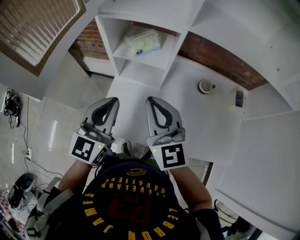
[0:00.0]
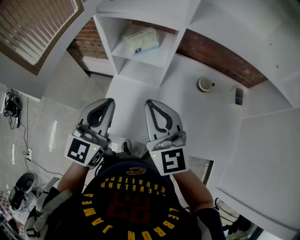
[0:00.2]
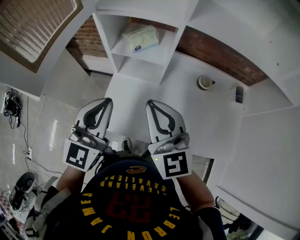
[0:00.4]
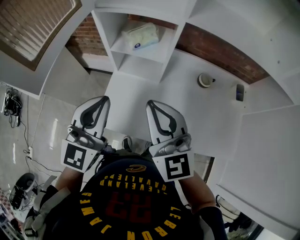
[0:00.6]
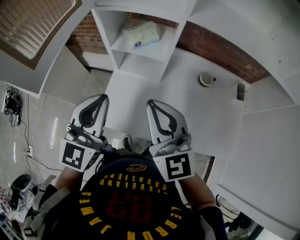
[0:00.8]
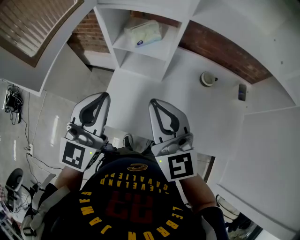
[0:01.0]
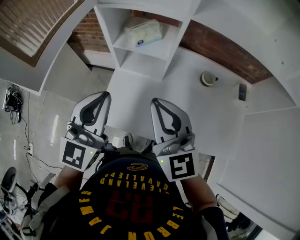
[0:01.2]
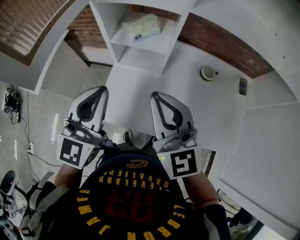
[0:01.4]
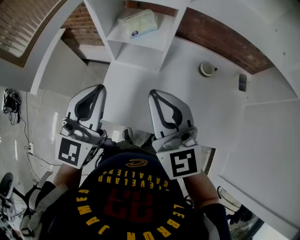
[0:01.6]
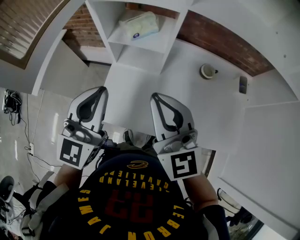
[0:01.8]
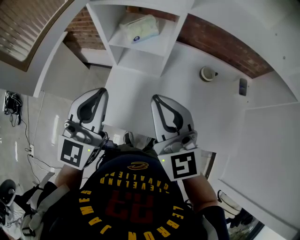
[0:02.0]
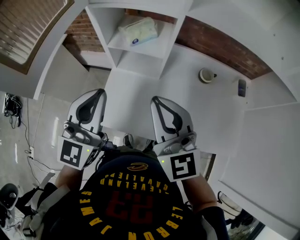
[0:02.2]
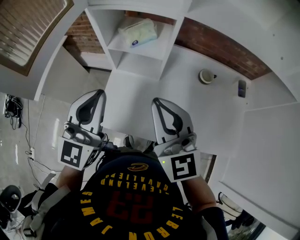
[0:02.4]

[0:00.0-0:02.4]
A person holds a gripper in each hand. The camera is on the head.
0:00.0 to 0:02.4: The grippers stay close to where they were, moving slightly.

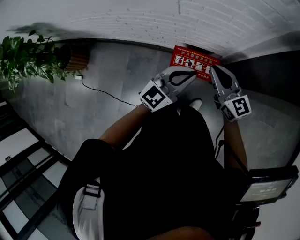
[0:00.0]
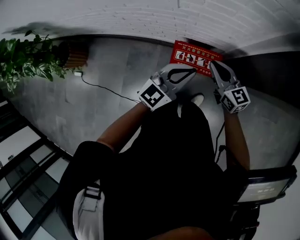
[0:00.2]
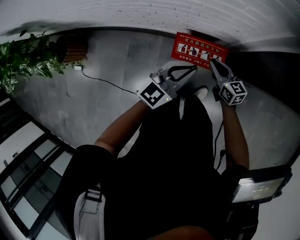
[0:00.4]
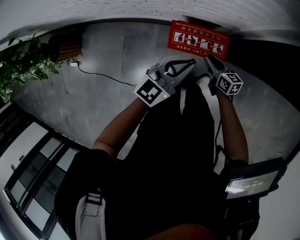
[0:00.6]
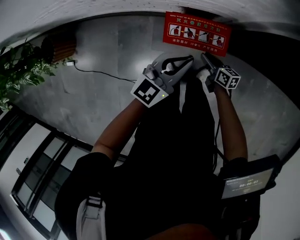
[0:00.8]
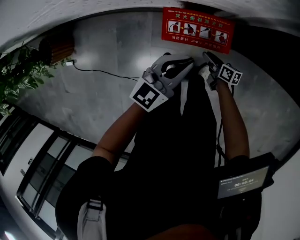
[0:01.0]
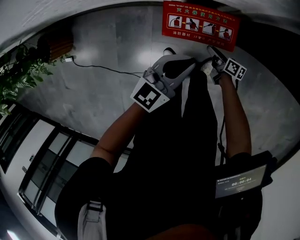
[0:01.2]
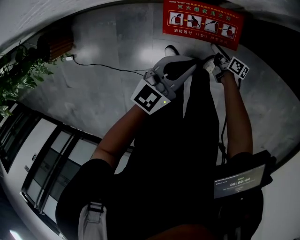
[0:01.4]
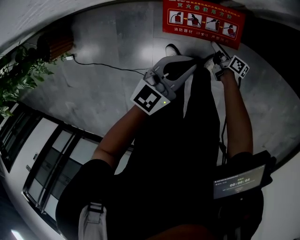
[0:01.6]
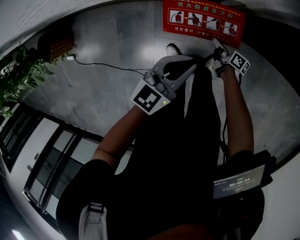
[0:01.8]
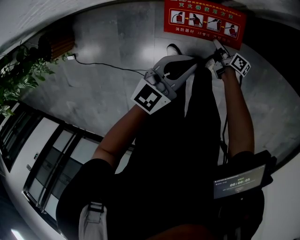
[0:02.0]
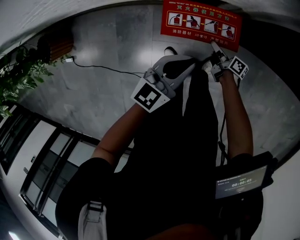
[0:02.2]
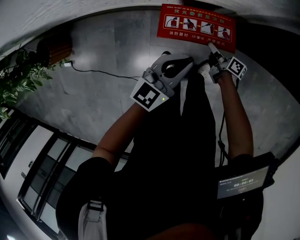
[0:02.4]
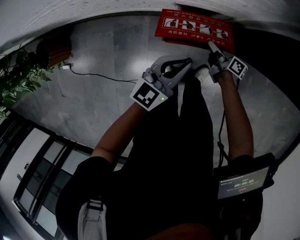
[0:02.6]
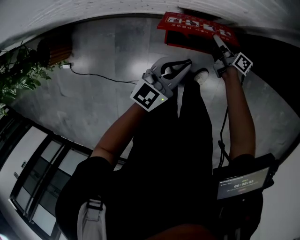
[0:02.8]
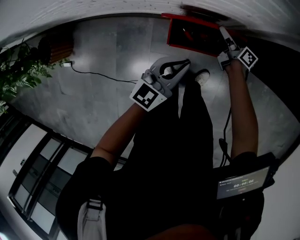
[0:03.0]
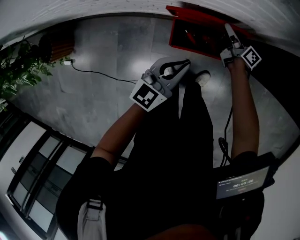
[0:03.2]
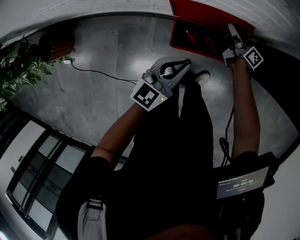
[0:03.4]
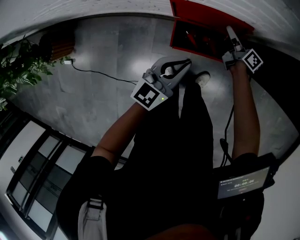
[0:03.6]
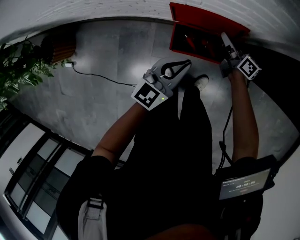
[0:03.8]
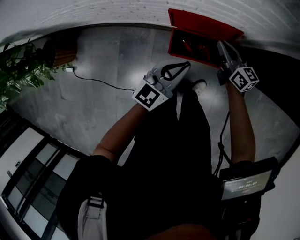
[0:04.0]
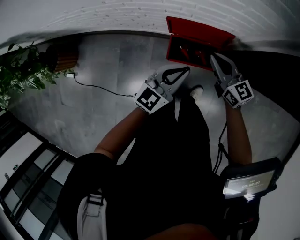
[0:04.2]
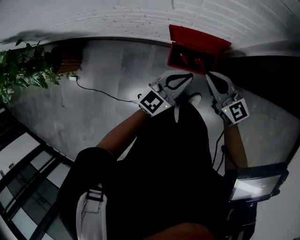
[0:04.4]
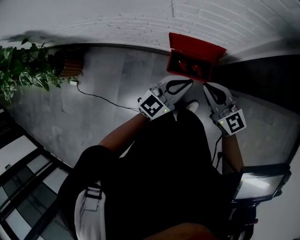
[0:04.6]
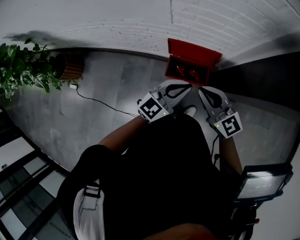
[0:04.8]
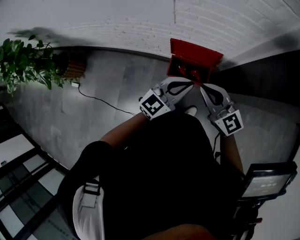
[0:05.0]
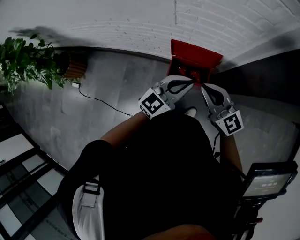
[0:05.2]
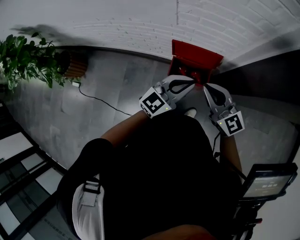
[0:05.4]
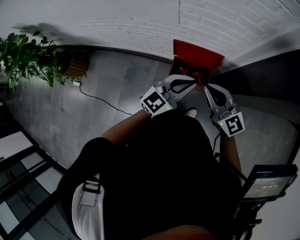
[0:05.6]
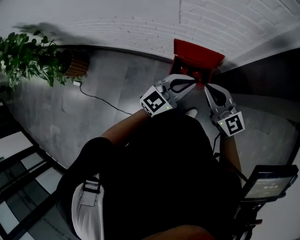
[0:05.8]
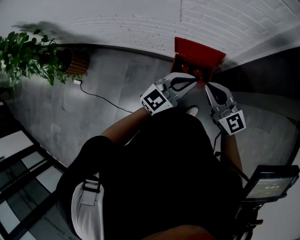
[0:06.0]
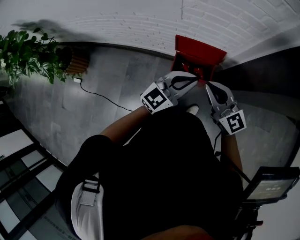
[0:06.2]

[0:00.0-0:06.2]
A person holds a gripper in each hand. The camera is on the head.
0:00.0 to 0:01.6: The left gripper shifts about 30 cm downward, while the right gripper is displaced downward by approximately 60 cm, rolls clockwise, seen from behind, by roughly 70 degrees, and opens up.
0:01.6 to 0:03.2: The right gripper travels forward and upward by some 30 cm; the left gripper goes some 5 cm upward.
0:03.2 to 0:04.6: The right gripper is displaced upward and backward by roughly 40 cm, twists about 70 degrees counterclockwise, seen from behind, and closes. Meanwhile the left gripper travels upward by some 20 cm.
0:04.6 to 0:06.2: The two grippers go roughly 5 cm upward.

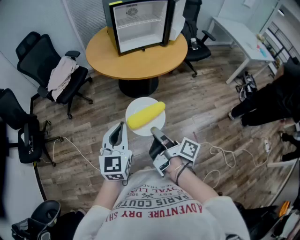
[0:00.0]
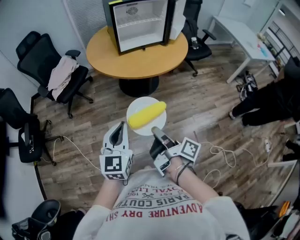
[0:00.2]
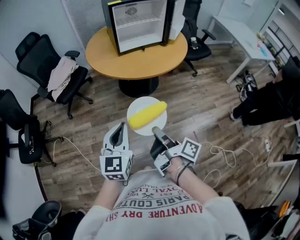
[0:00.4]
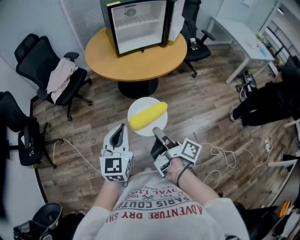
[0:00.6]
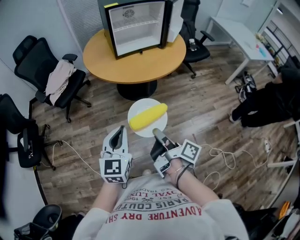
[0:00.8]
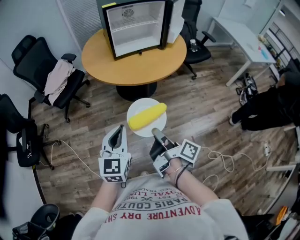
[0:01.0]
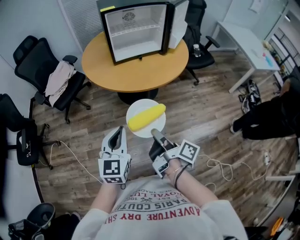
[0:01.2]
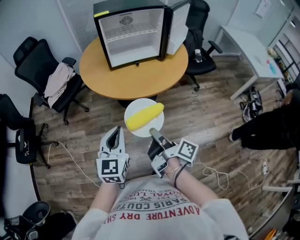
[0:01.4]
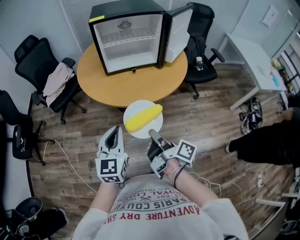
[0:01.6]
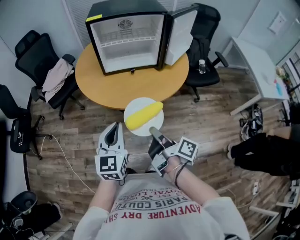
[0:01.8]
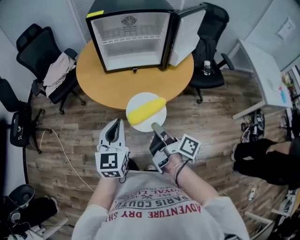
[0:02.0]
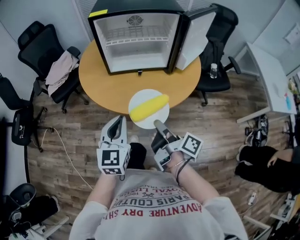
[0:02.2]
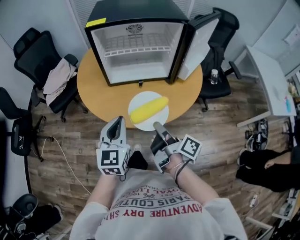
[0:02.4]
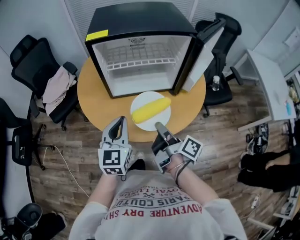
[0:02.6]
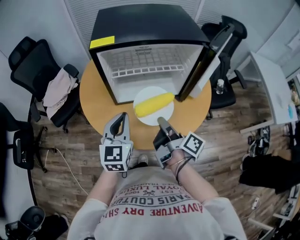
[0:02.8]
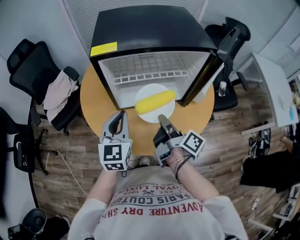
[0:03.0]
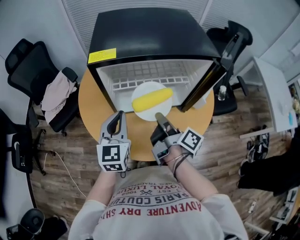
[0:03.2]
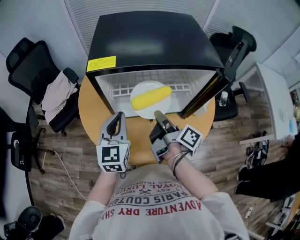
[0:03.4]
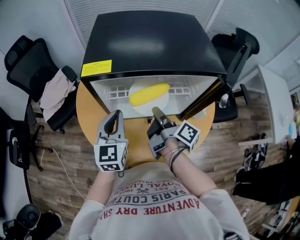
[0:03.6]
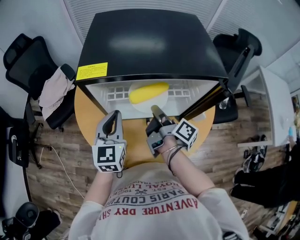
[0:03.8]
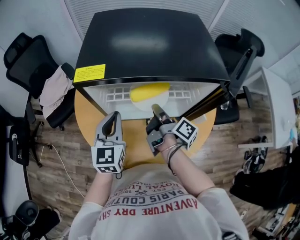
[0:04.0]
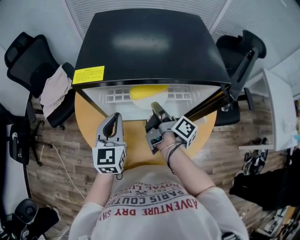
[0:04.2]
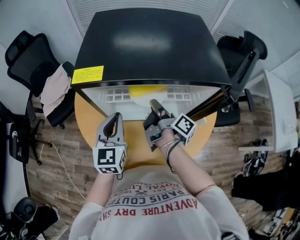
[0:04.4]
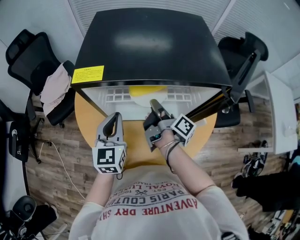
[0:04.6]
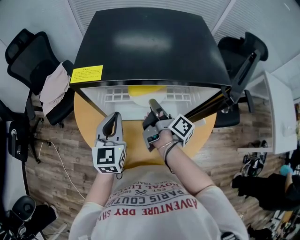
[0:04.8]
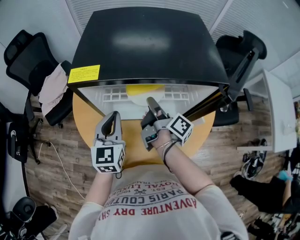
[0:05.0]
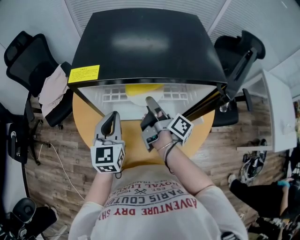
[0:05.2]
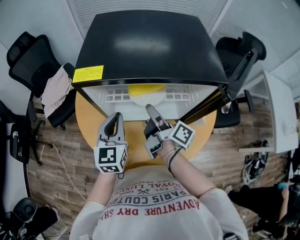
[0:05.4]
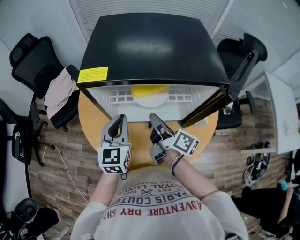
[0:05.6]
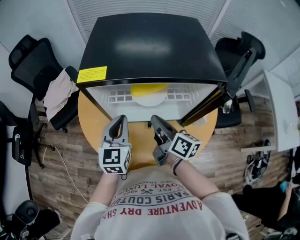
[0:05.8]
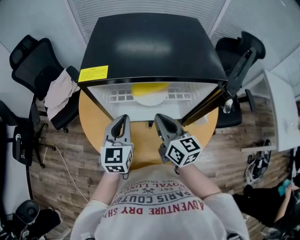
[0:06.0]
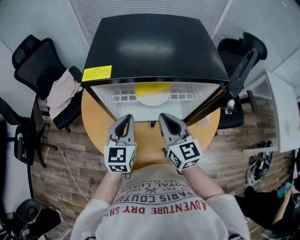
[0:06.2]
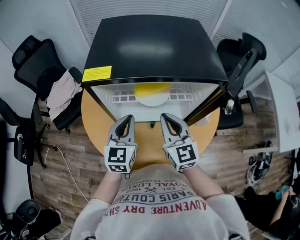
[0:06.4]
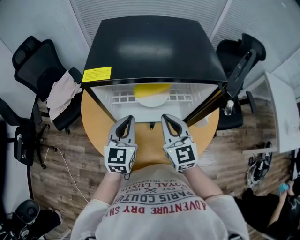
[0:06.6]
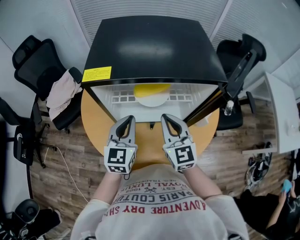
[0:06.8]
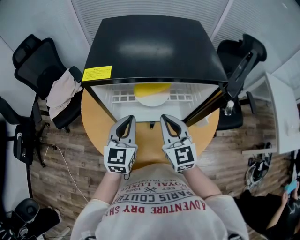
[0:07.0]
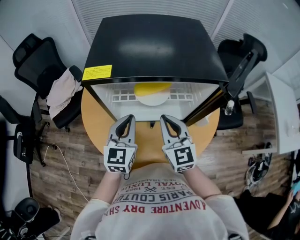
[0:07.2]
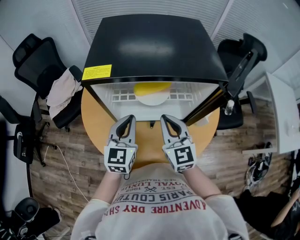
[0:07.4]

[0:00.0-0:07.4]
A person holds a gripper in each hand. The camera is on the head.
0:00.0 to 0:01.4: The left gripper ends up some 15 cm from where it was.
0:01.4 to 0:03.0: The left gripper shifts by about 40 cm.
0:03.0 to 0:04.4: The left gripper ends up approximately 10 cm from where it was.

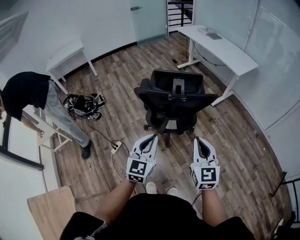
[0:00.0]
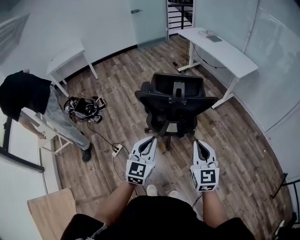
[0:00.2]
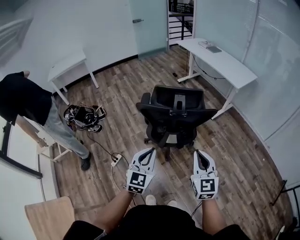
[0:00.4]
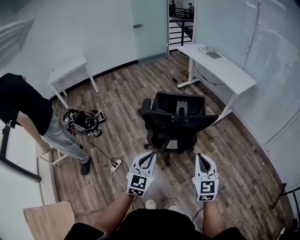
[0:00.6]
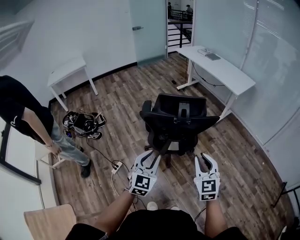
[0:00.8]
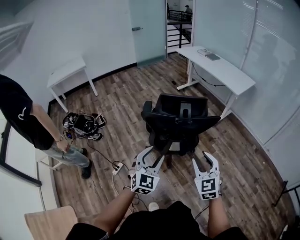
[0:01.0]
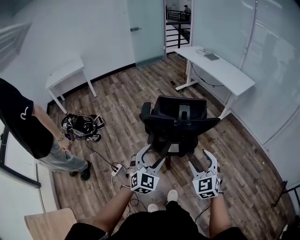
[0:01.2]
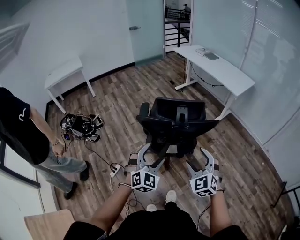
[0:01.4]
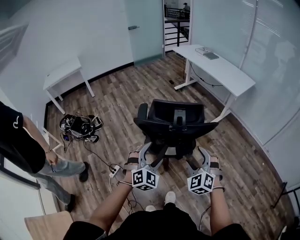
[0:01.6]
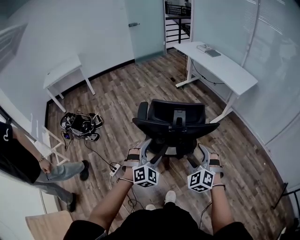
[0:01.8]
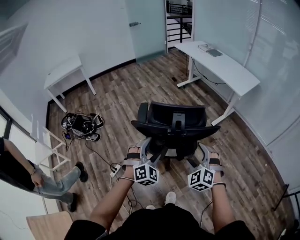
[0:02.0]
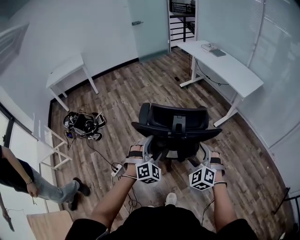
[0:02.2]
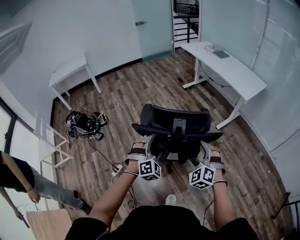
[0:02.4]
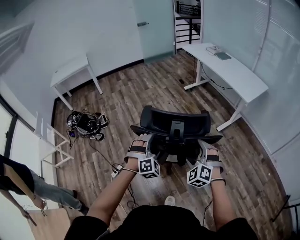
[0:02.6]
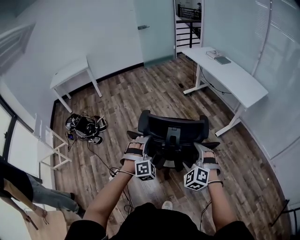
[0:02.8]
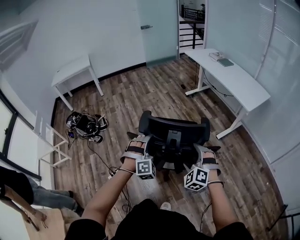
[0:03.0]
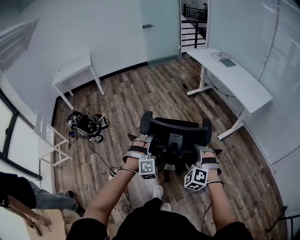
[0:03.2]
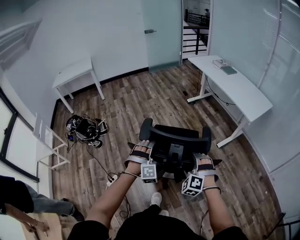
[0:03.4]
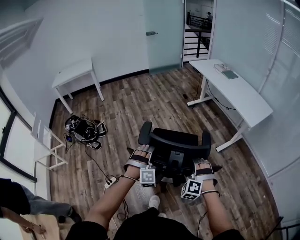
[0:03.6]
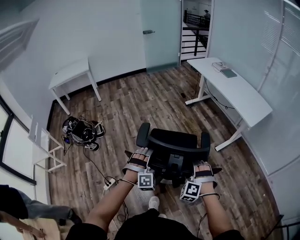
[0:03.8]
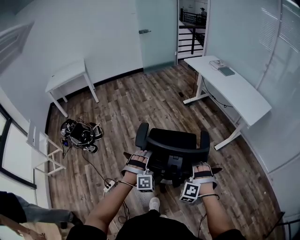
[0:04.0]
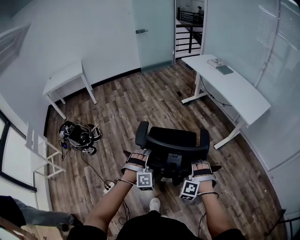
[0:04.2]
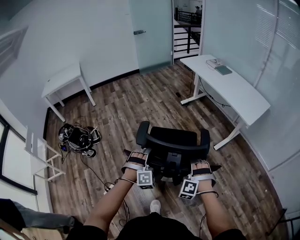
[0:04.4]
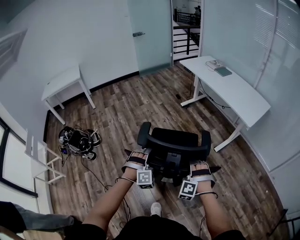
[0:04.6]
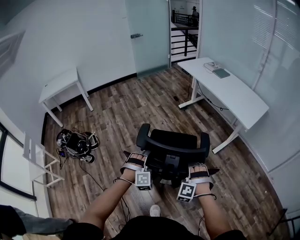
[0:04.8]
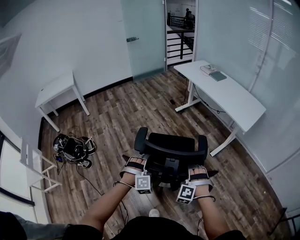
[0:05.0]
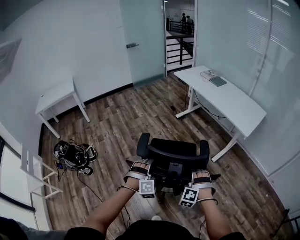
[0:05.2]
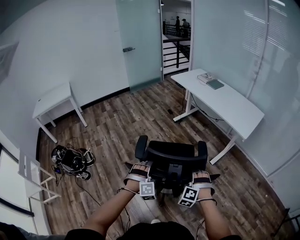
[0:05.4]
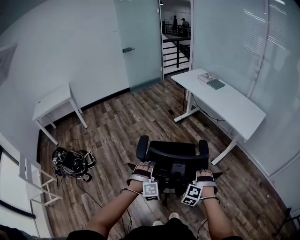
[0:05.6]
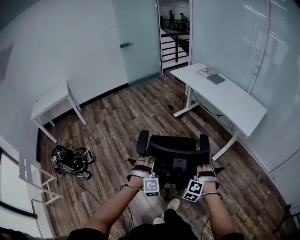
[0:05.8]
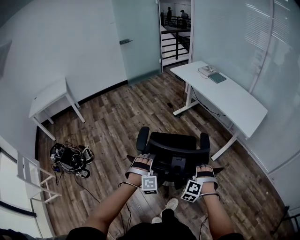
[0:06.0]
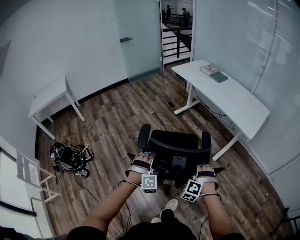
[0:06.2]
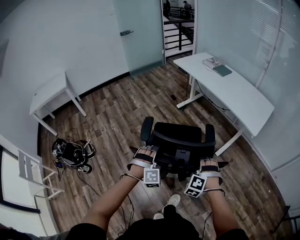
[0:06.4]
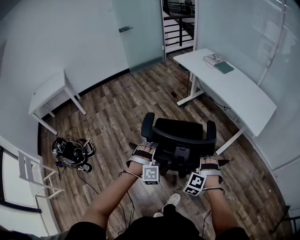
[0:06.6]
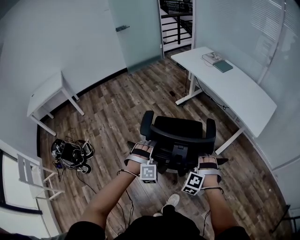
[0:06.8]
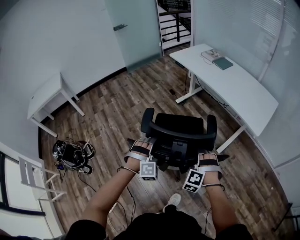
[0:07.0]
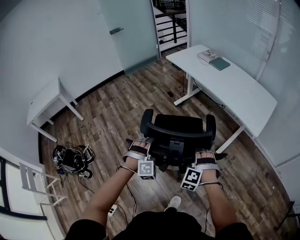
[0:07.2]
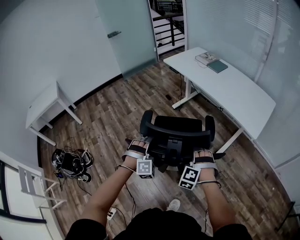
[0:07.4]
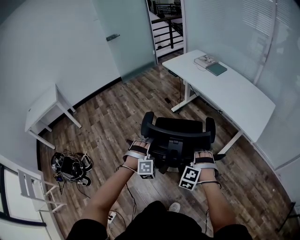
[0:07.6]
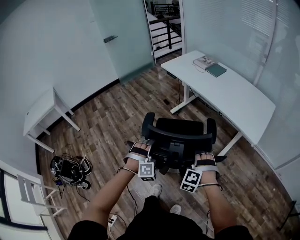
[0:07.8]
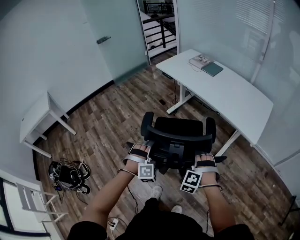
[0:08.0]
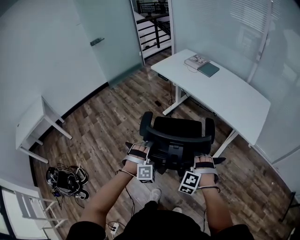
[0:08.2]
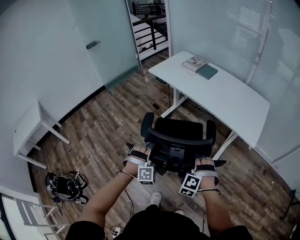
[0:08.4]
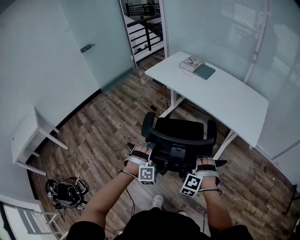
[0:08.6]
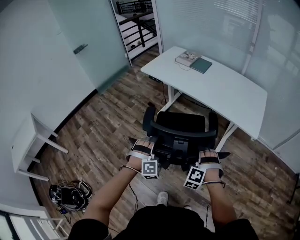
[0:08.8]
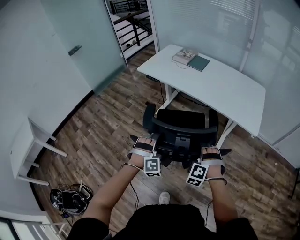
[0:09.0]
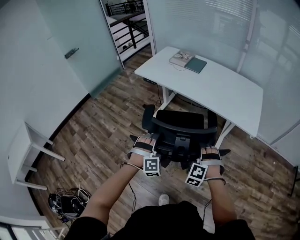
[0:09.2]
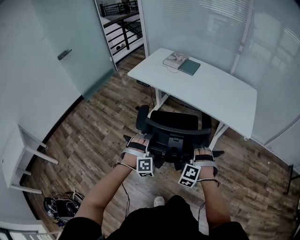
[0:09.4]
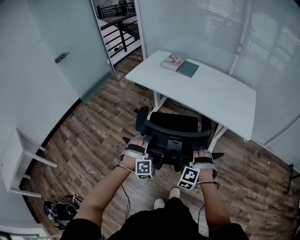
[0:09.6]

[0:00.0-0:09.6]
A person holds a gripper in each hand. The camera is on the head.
0:00.0 to 0:01.6: The left gripper shifts by approximately 10 cm, twists about 40 degrees clockwise, seen from behind, and opens its fingers.
0:01.6 to 0:03.2: The left gripper changes place by roughly 20 cm, and rotates roughly 30 degrees.
0:03.2 to 0:04.8: The left gripper moves some 15 cm.
0:04.8 to 0:06.4: The left gripper ends up about 15 cm from where it was.
0:06.4 to 0:08.0: The left gripper changes place by about 20 cm.
0:08.0 to 0:09.6: The left gripper changes place by roughly 20 cm.
